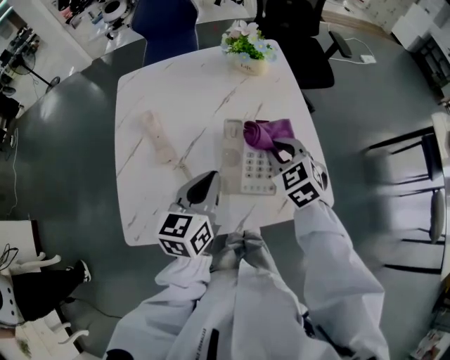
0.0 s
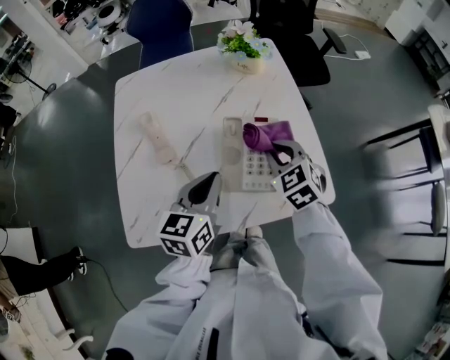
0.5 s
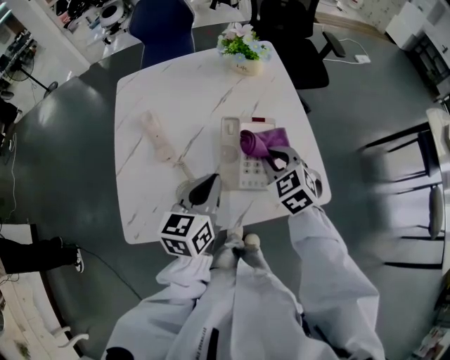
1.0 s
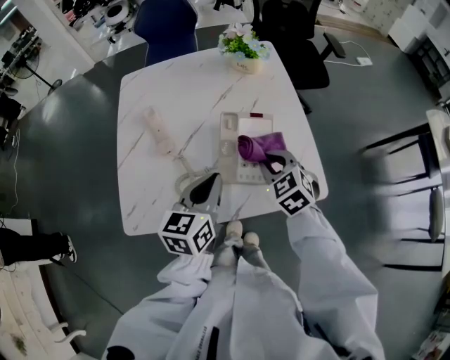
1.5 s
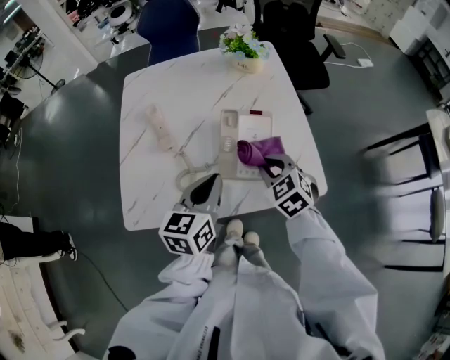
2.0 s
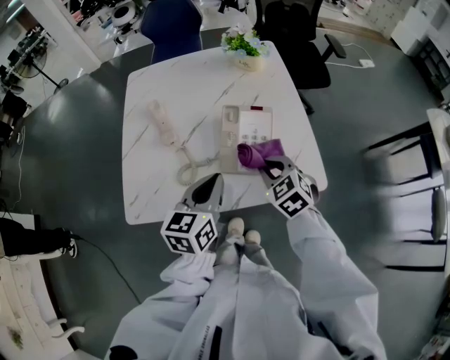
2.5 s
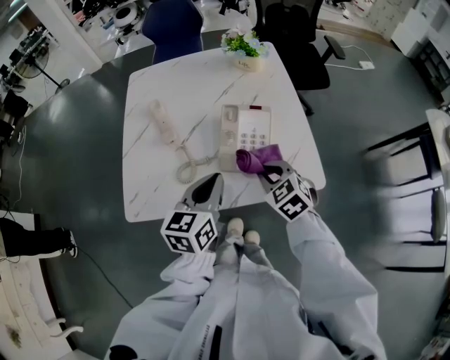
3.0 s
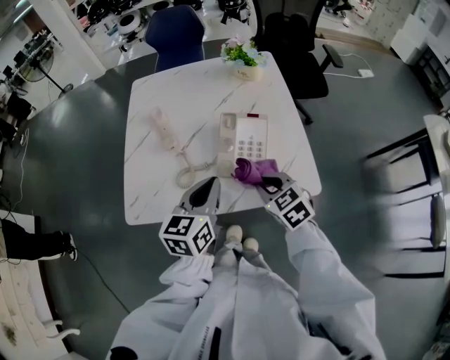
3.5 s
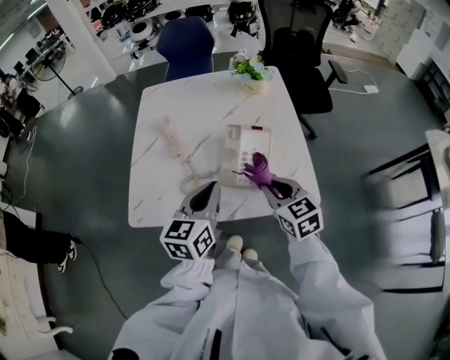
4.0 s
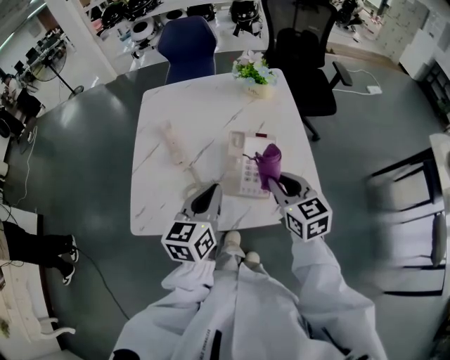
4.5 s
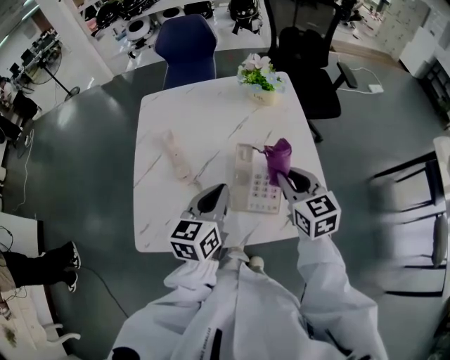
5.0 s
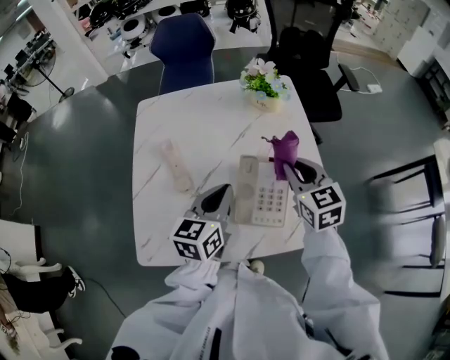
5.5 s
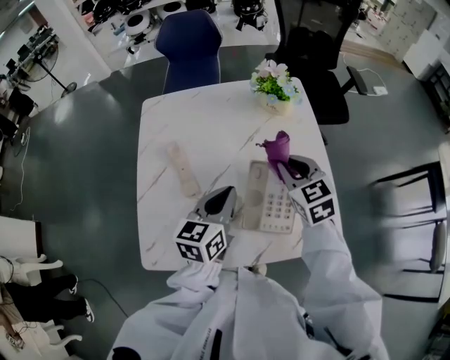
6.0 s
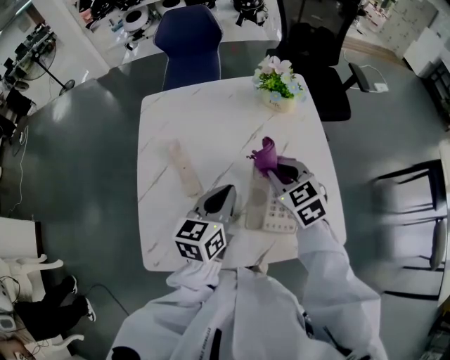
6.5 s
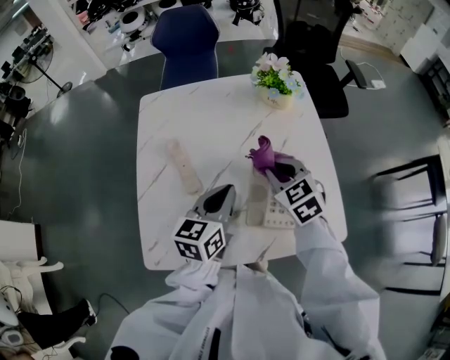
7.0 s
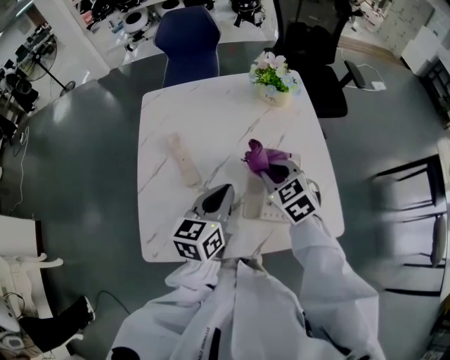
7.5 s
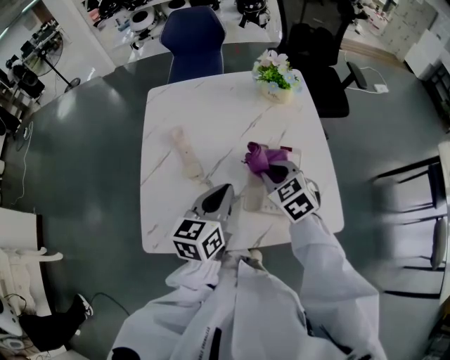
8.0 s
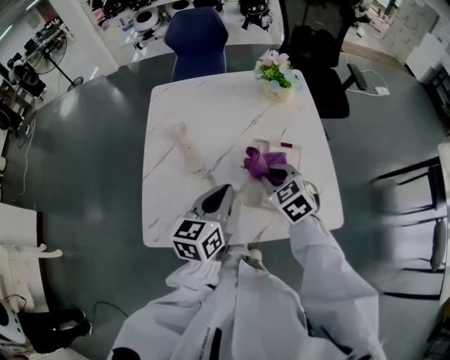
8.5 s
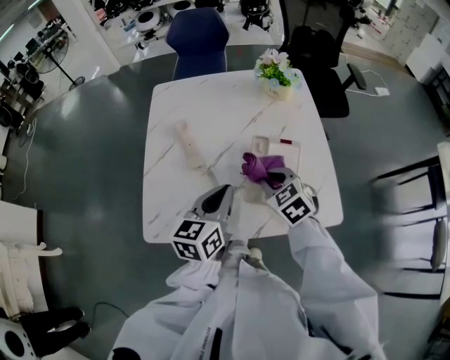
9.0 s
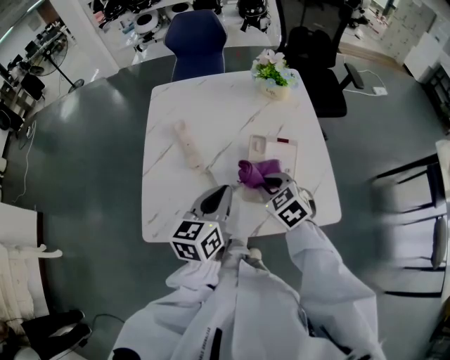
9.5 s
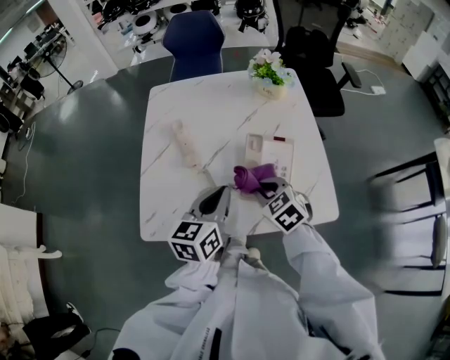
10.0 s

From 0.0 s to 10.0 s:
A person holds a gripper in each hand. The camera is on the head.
From 0.0 s to 2.0 s: The left gripper travels backward by some 5 cm; the right gripper shifts roughly 10 cm backward.
From 2.0 s to 4.0 s: The right gripper travels upward by approximately 5 cm, and changes its angle by roughly 20 degrees.
From 4.0 s to 6.0 s: The two grippers go roughly 20 cm forward.
From 6.0 s to 8.0 s: The right gripper is displaced backward, to the left and downward by approximately 10 cm, while the left gripper shifts approximately 5 cm backward.
From 8.0 s to 10.0 s: The right gripper travels backward by roughly 10 cm. The left gripper goes about 5 cm backward.

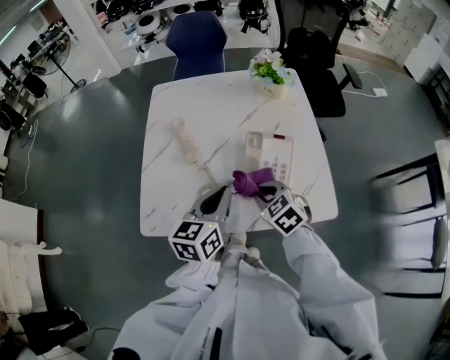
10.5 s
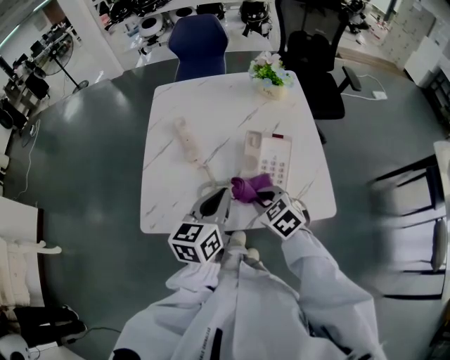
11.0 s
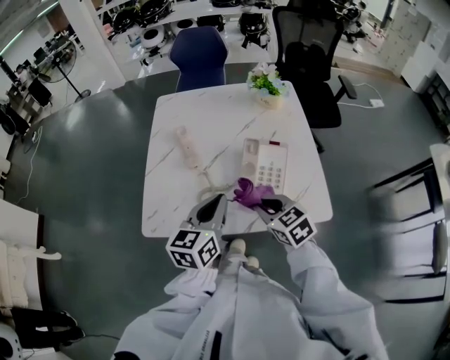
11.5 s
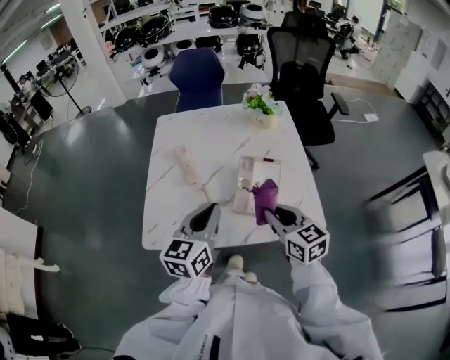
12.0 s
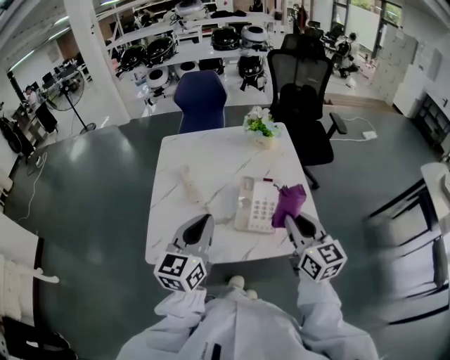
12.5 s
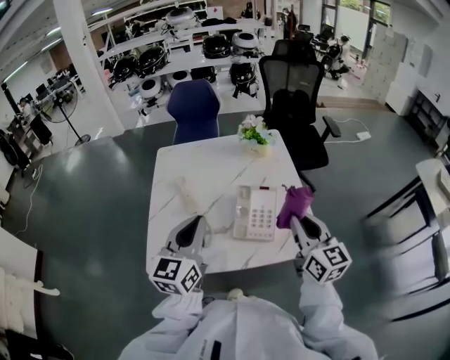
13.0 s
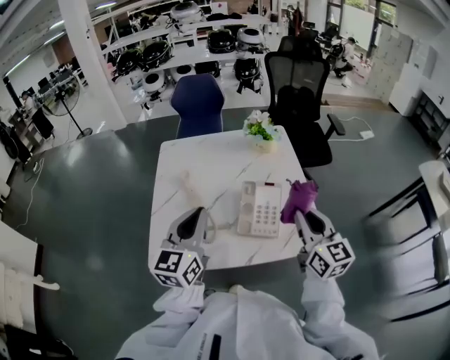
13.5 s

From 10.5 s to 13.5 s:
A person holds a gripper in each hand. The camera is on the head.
From 10.5 s to 12.0 s: The right gripper heads upward and to the right, covering approximately 15 cm, and swivels approximately 40 degrees. The left gripper shifts some 5 cm upward.
From 12.0 s to 13.5 s: The left gripper goes roughly 10 cm upward, while the right gripper moves upward and to the right, roughly 15 cm, and swivels about 20 degrees.

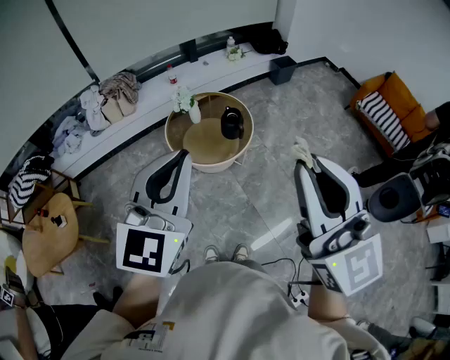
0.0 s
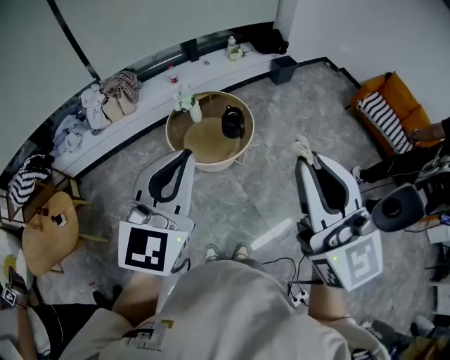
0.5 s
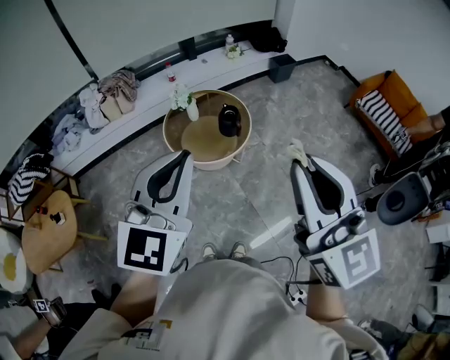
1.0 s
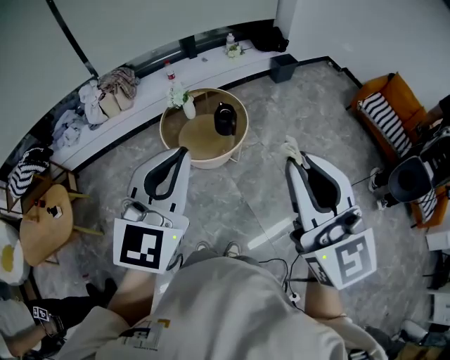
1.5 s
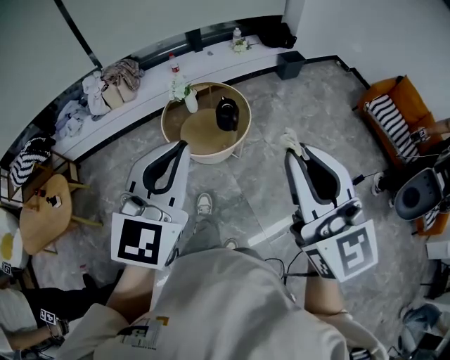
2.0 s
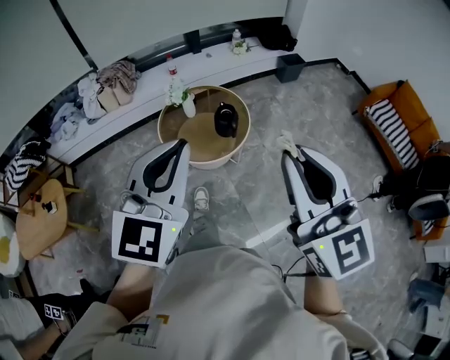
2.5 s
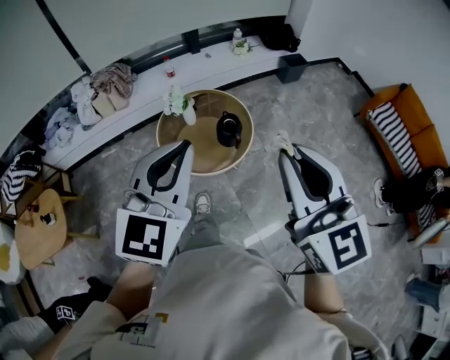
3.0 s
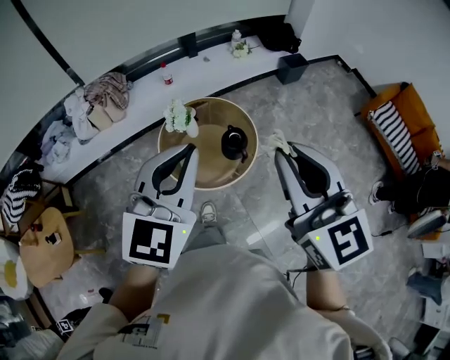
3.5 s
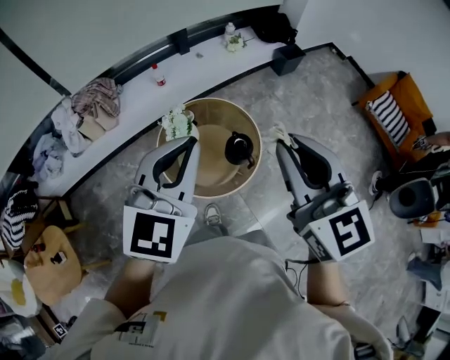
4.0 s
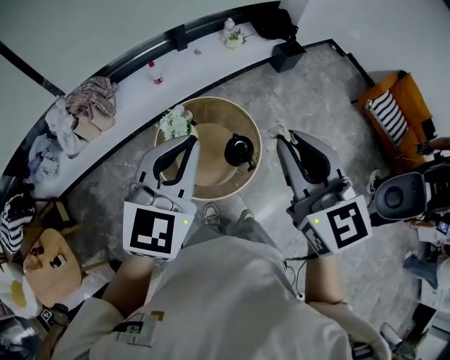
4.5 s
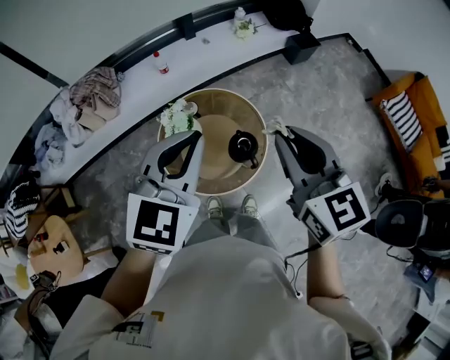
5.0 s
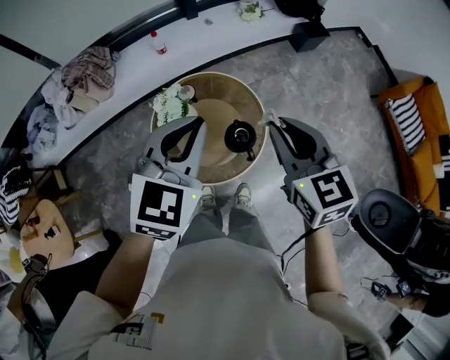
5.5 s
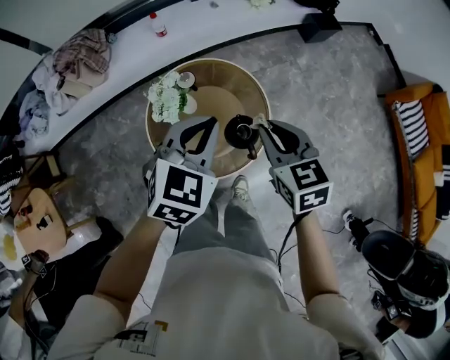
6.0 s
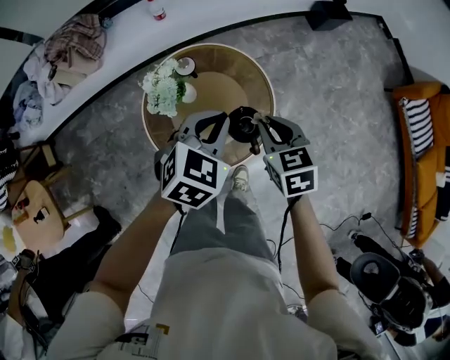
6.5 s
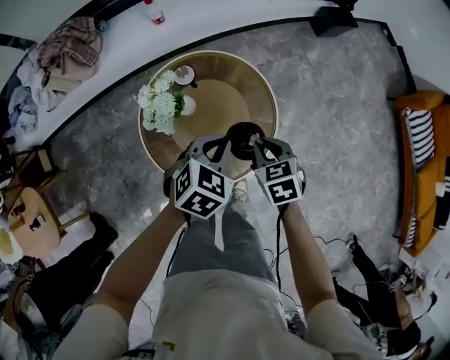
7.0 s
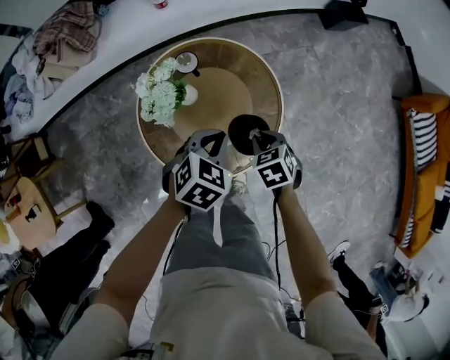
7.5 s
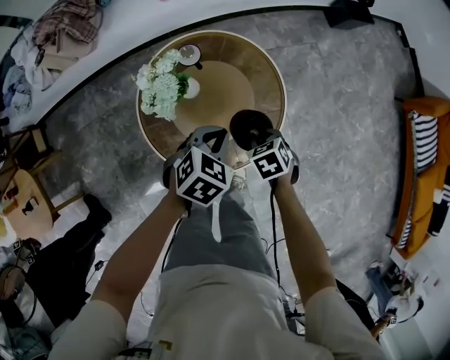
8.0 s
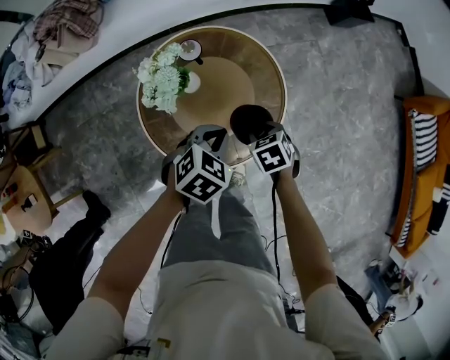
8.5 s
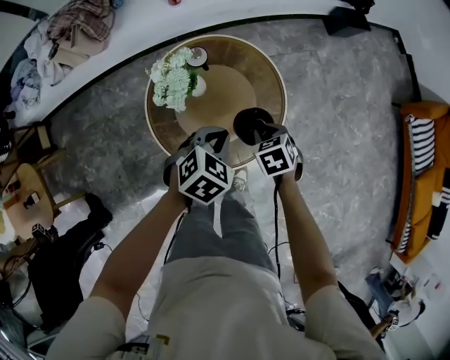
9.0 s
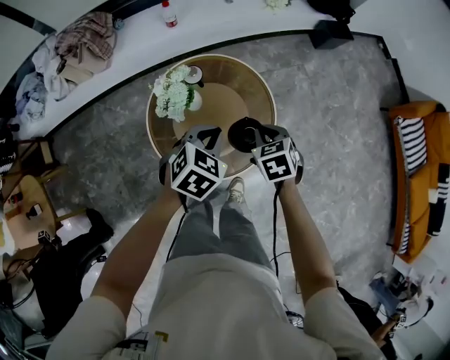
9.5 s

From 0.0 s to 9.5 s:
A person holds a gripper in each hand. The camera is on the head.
From 0.0 s to 2.0 s: The right gripper heads to the right and downward, covering some 10 cm, while the left gripper heads to the right, covering some 10 cm.
From 2.0 s to 4.0 s: The two grippers travel together, forward, approximately 40 cm.
From 4.0 s to 5.5 s: The left gripper shifts approximately 15 cm forward and downward, while the right gripper travels downward and forward by roughly 25 cm.
From 5.5 s to 7.5 s: The grippers both shift downward by about 40 cm. The right gripper tips its fingers downward by roughly 40 degrees. The left gripper changes its angle by some 30 degrees.
From 7.5 s to 9.5 s: The grippers both shift upward by roughly 10 cm.

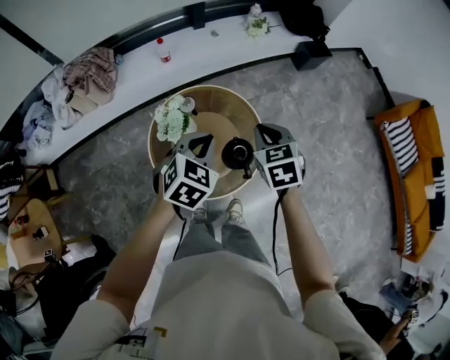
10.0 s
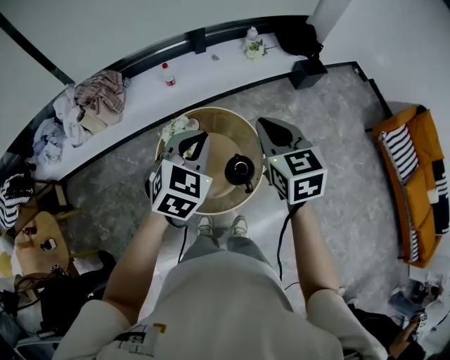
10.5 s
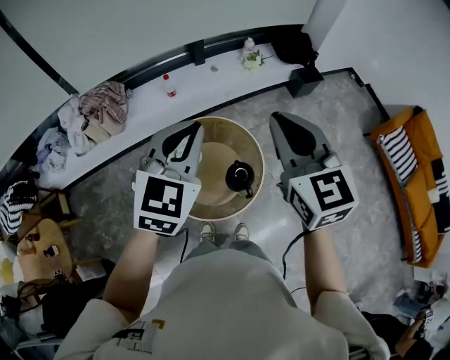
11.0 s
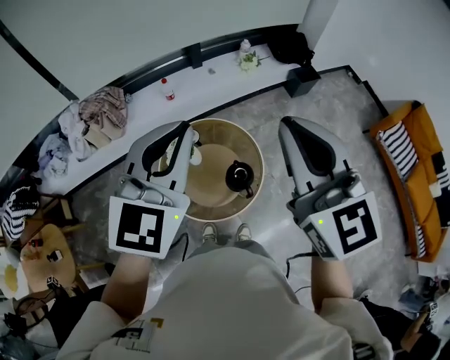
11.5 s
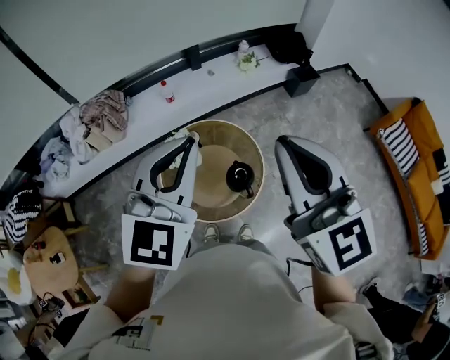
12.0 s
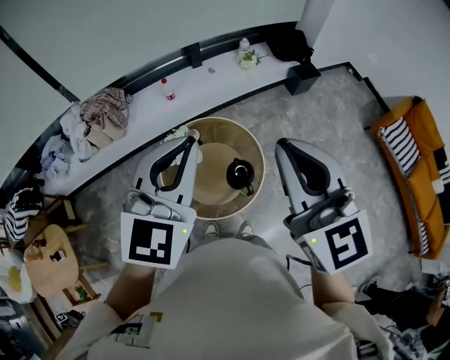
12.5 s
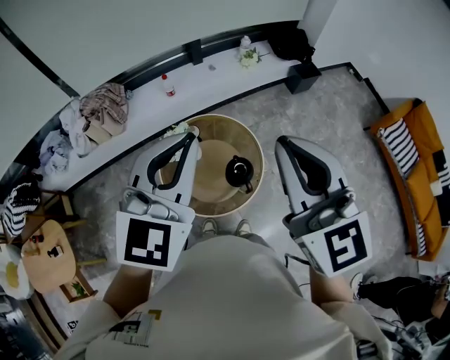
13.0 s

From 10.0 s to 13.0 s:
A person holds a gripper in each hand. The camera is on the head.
From 10.0 s to 11.5 s: The two grippers go some 35 cm upward. The right gripper tips its fingers upward by roughly 40 degrees. The left gripper tilts its fingers some 40 degrees upward.
From 11.5 s to 13.0 s: The grippers move only a little.

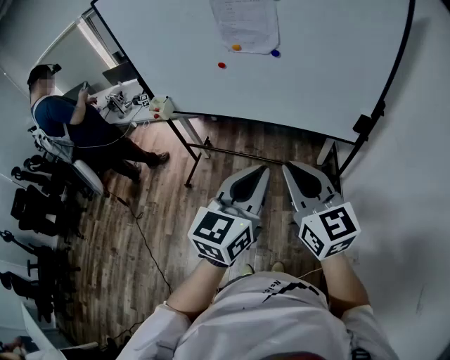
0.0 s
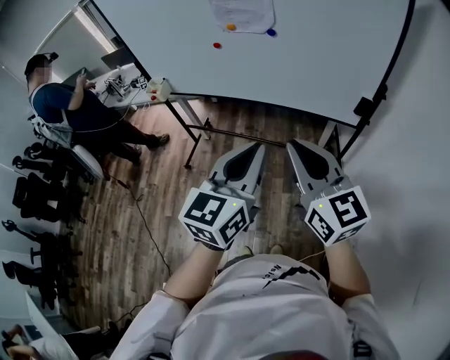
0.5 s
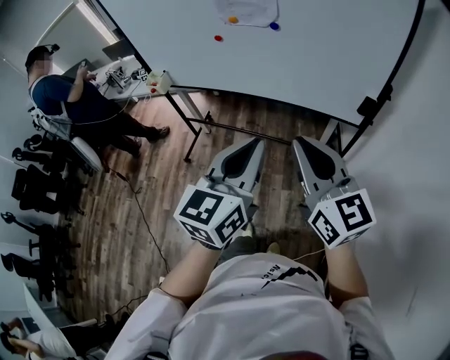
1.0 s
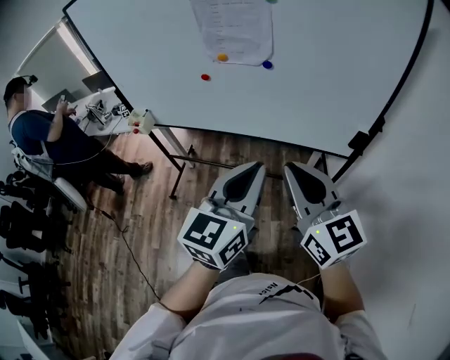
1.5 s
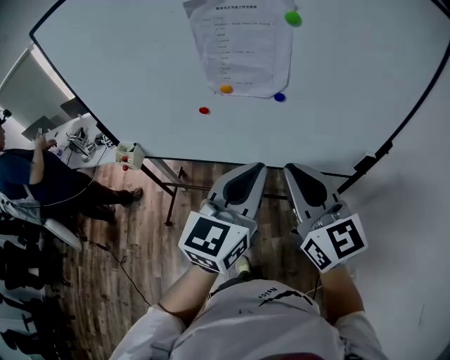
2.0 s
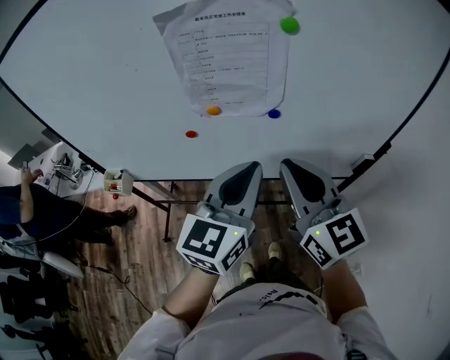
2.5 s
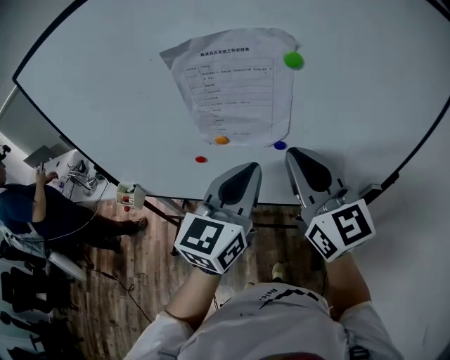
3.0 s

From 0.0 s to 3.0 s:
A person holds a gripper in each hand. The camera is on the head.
From 0.0 s to 1.5 s: Both grippers travel together forward, about 10 cm.
From 1.5 s to 3.0 s: The grippers both shift forward by roughly 25 cm.
